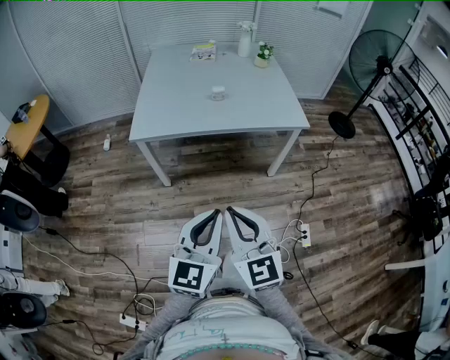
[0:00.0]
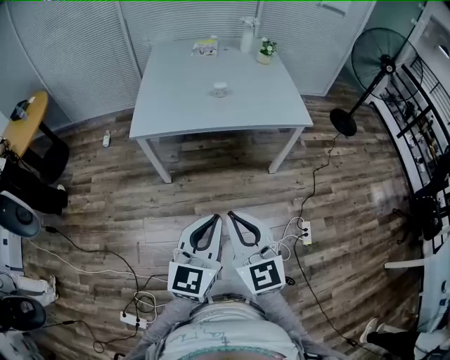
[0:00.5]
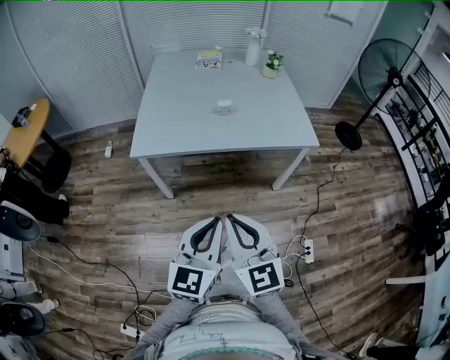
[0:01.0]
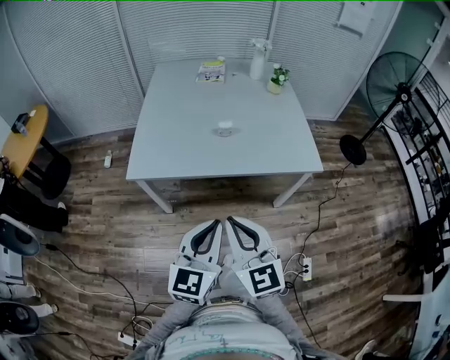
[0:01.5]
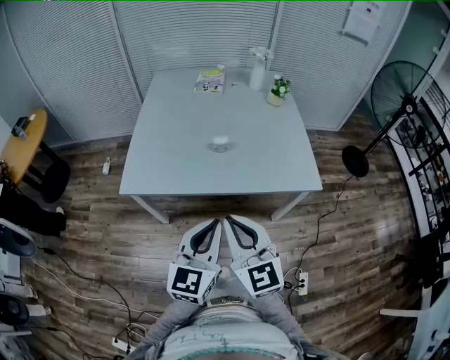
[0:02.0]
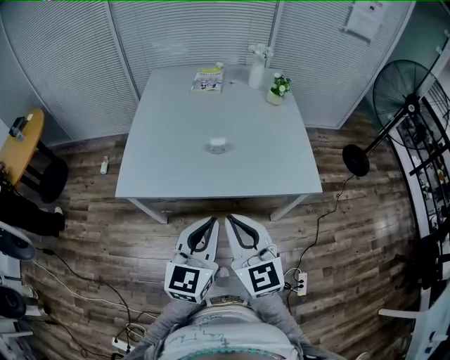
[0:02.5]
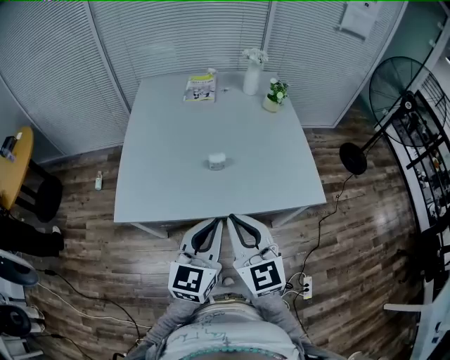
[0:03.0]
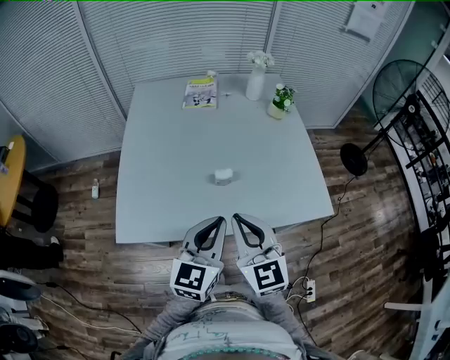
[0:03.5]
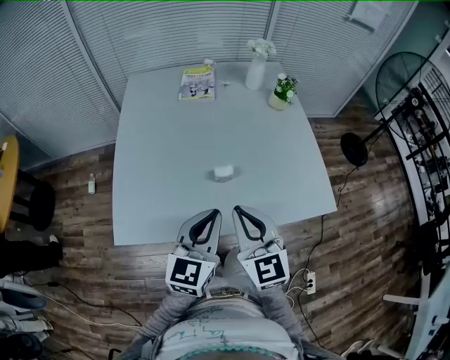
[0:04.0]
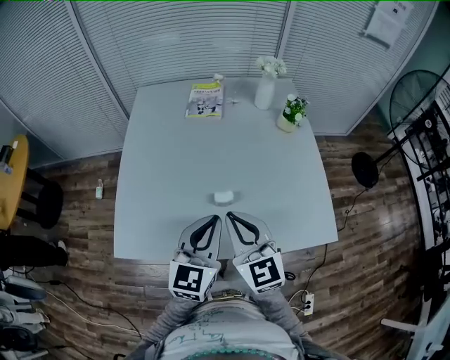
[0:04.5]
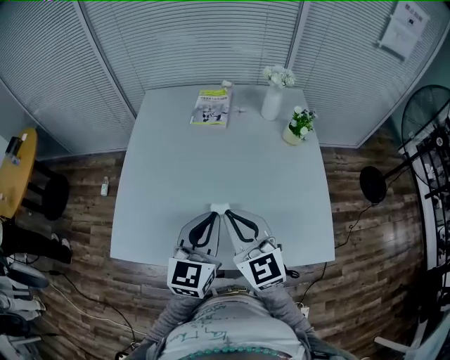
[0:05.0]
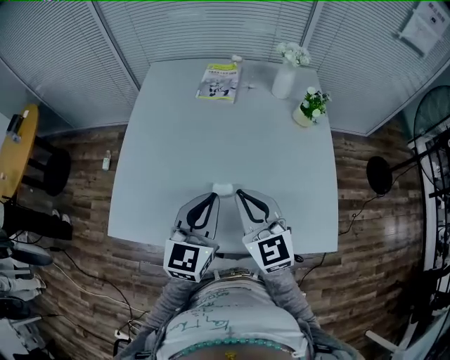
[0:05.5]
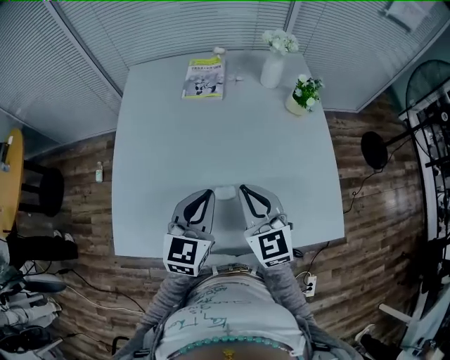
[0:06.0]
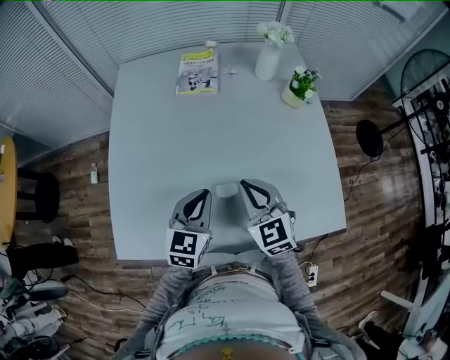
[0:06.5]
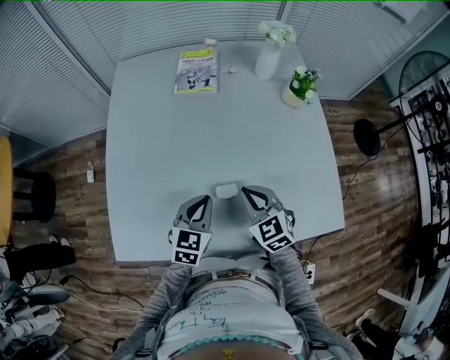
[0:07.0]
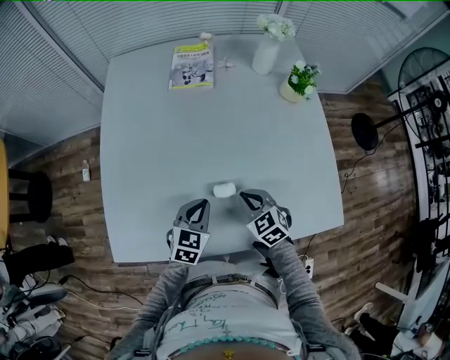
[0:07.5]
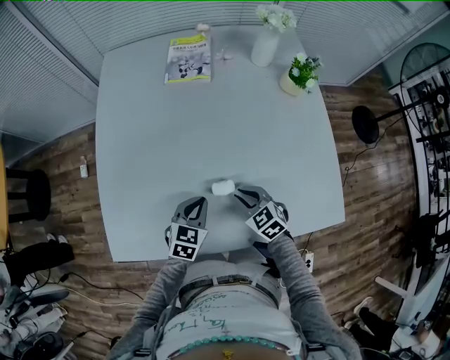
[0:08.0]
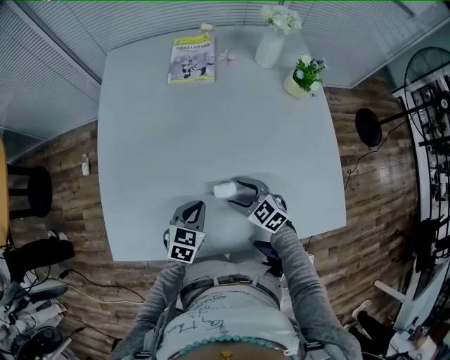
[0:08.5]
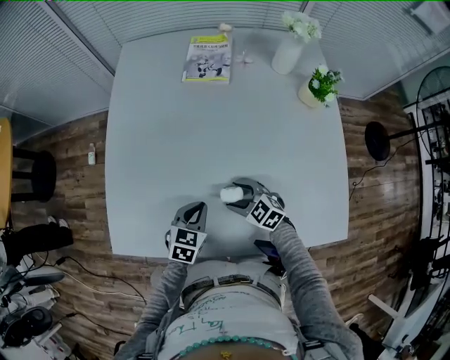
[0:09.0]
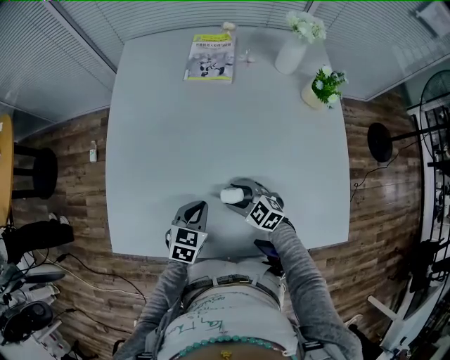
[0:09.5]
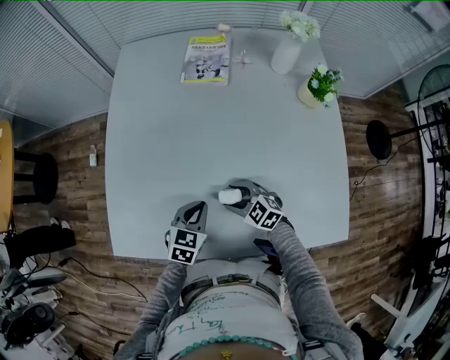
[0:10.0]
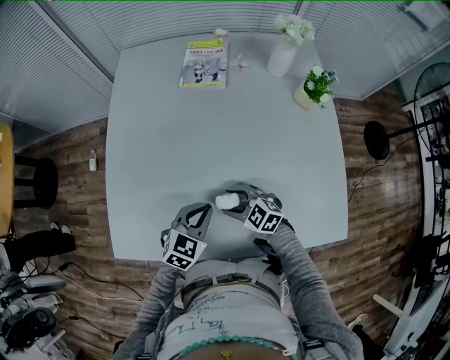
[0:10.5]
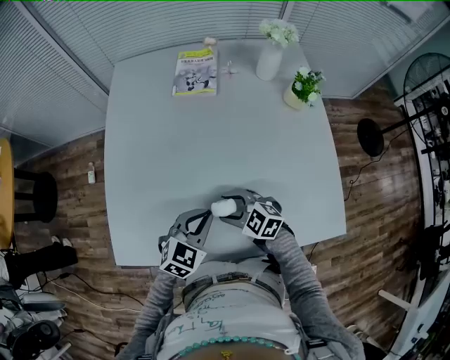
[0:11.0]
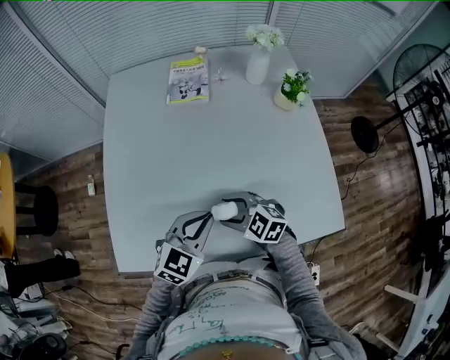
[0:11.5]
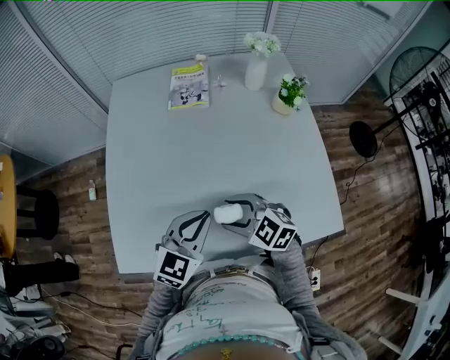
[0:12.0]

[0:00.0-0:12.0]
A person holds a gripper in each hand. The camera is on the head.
0:00.0 to 0:02.0: The two grippers go about 30 cm forward.
0:02.0 to 0:04.0: Both grippers move forward, approximately 25 cm.
0:04.0 to 0:06.0: Both grippers move forward, about 20 cm.
0:06.0 to 0:08.0: The grippers both shift downward by about 20 cm. The right gripper tilts its fingers roughly 30 degrees downward. The left gripper turns by roughly 30 degrees.
0:08.0 to 0:10.0: The right gripper changes place by about 5 cm, turns by roughly 20 degrees, and opens up.
0:10.0 to 0:12.0: The two grippers go about 20 cm upward. The left gripper rotates about 30 degrees.

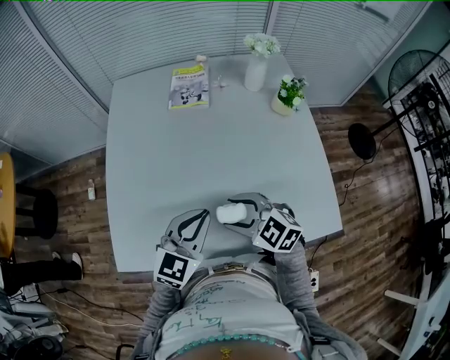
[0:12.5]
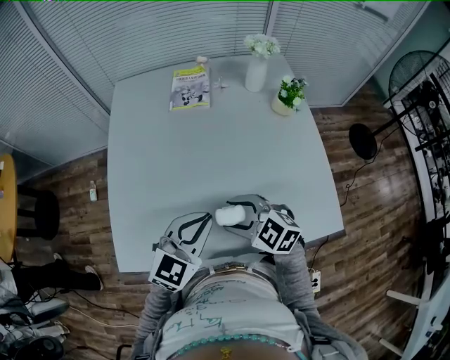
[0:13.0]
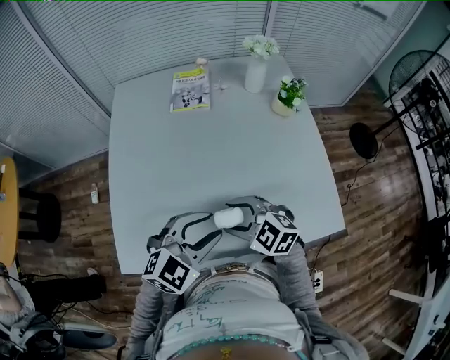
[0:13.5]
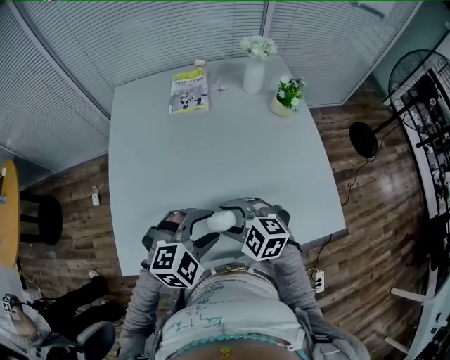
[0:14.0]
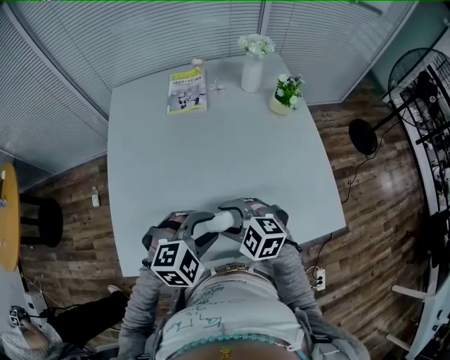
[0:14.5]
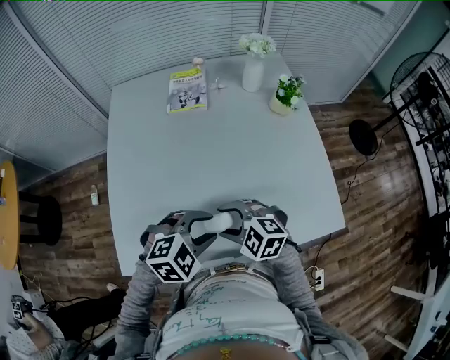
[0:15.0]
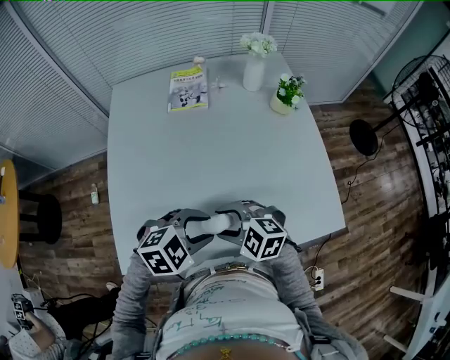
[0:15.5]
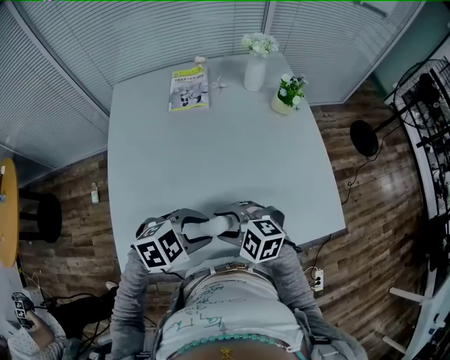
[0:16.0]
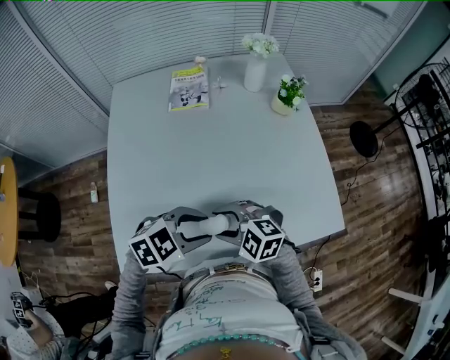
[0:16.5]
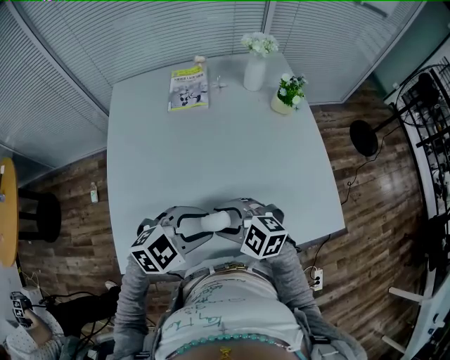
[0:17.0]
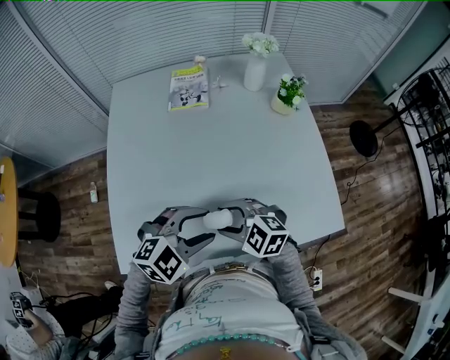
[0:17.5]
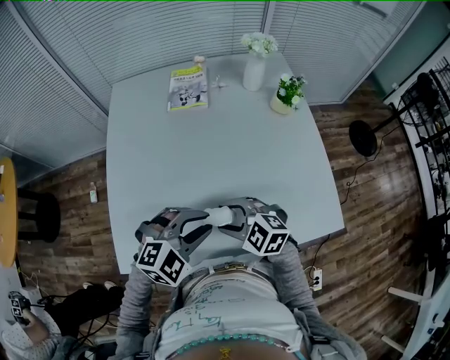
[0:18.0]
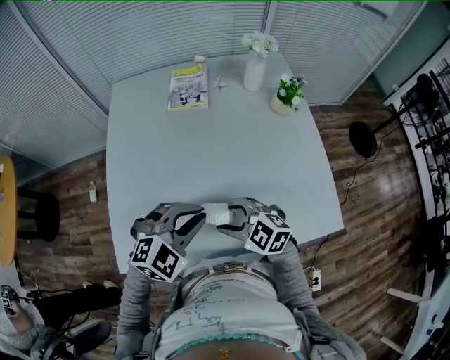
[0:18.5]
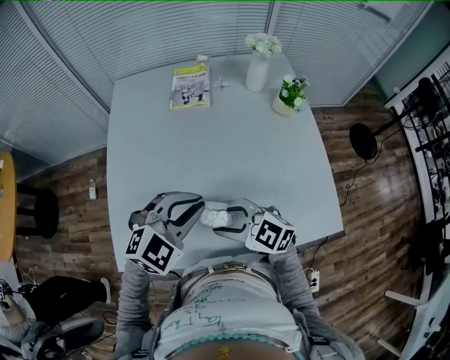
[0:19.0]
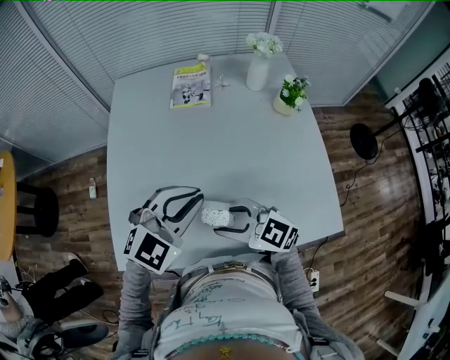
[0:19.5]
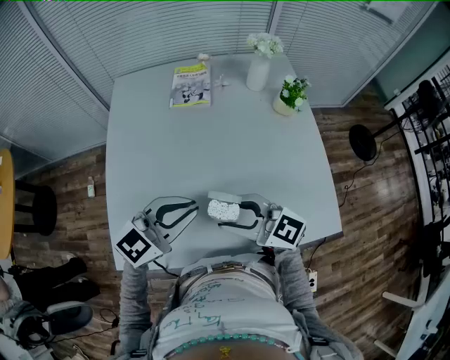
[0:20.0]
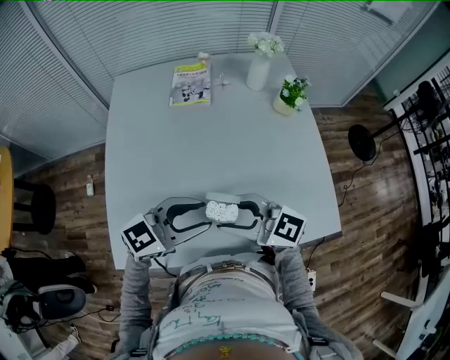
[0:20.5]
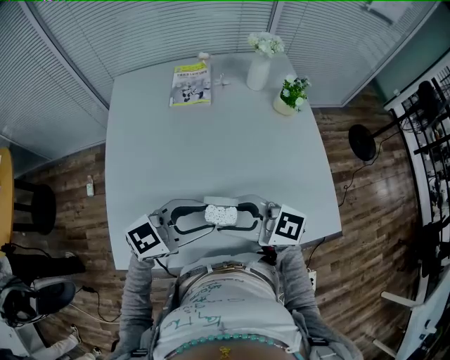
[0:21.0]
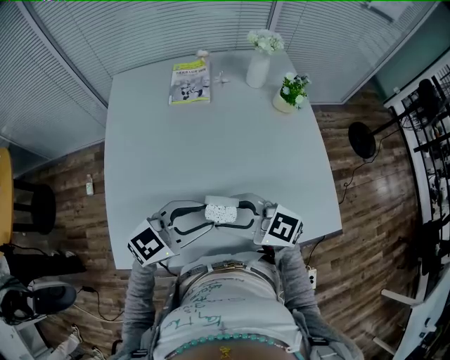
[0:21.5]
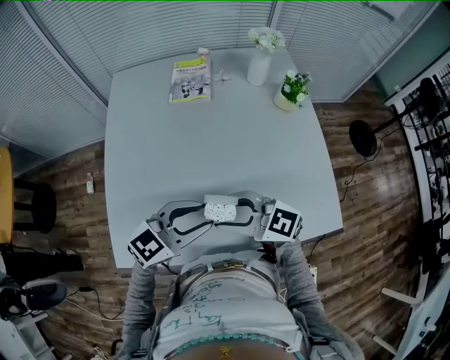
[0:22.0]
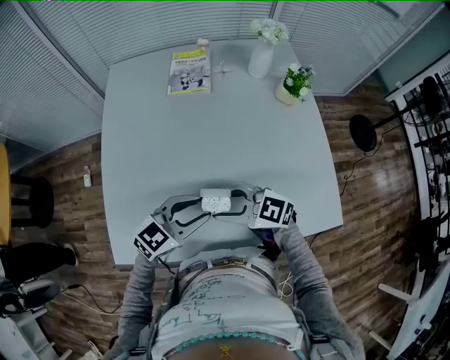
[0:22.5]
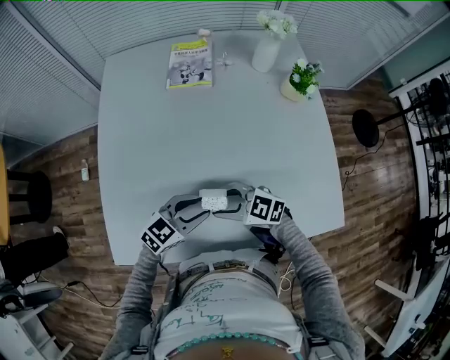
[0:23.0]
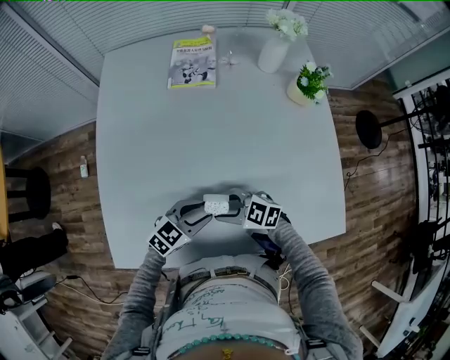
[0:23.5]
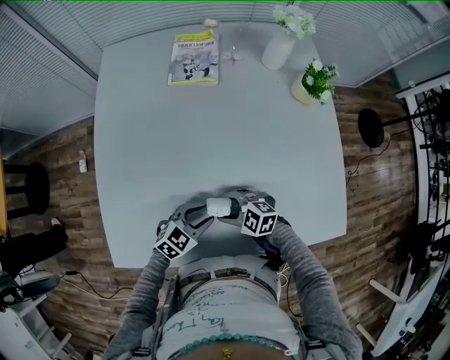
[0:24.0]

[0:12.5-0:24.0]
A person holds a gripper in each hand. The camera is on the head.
0:12.5 to 0:14.5: The left gripper ends up some 5 cm from where it was, points its fingers approximately 30 degrees further downward, and opens its fingers.
0:14.5 to 0:16.5: The left gripper swivels some 30 degrees.
0:16.5 to 0:18.5: The left gripper changes its angle by some 30 degrees, and closes its fingers.
0:18.5 to 0:20.0: The left gripper ends up roughly 5 cm from where it was, and turns by roughly 40 degrees, while the right gripper moves upward, about 10 cm, and turns by roughly 30 degrees.
0:20.0 to 0:22.0: The left gripper shifts by roughly 5 cm, and opens its fingers.
0:22.0 to 0:24.0: The two grippers go about 25 cm downward. The left gripper swivels about 20 degrees. Meanwhile the right gripper changes its angle by about 30 degrees.

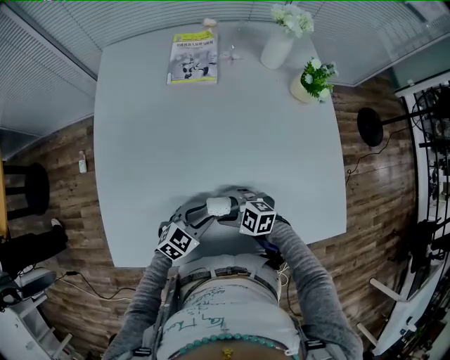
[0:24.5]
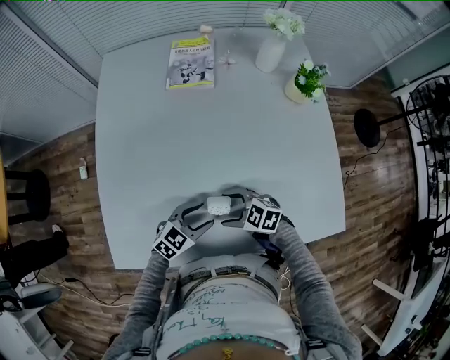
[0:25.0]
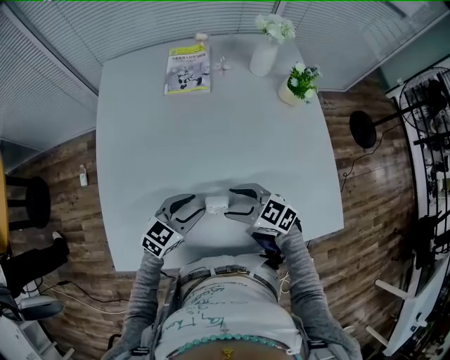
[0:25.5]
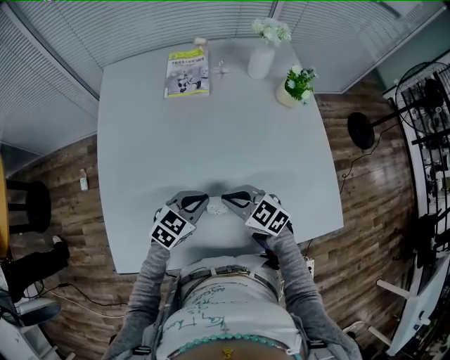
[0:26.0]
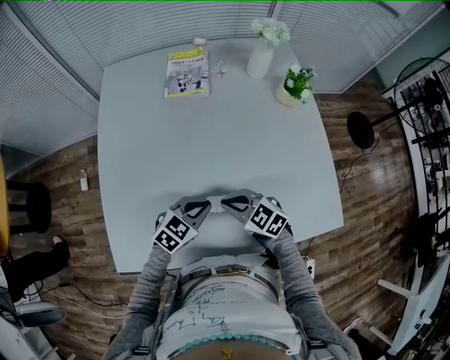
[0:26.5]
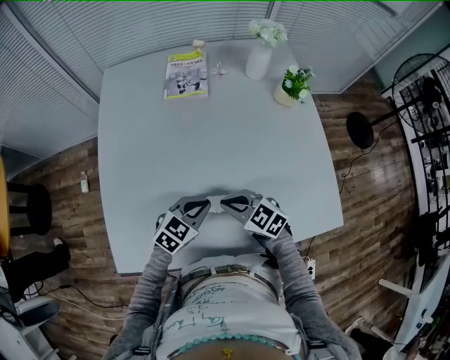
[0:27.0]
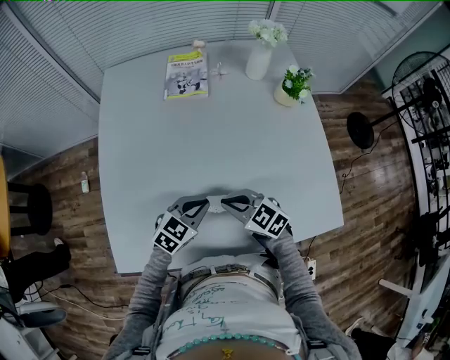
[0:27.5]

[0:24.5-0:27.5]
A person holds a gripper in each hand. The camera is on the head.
0:24.5 to 0:26.0: Both grippers move upward, some 10 cm. The right gripper changes its angle by roughly 30 degrees, and closes; the left gripper closes up.
0:26.0 to 0:27.5: The grippers stay close to where they were, moving slightly.
